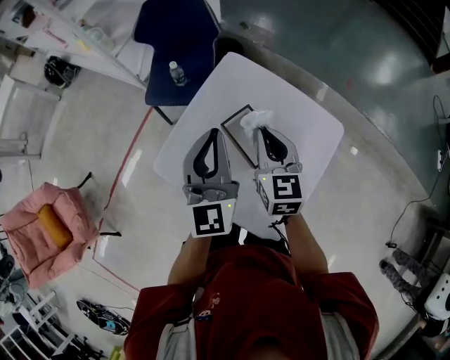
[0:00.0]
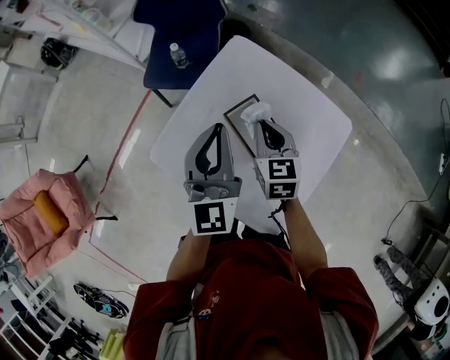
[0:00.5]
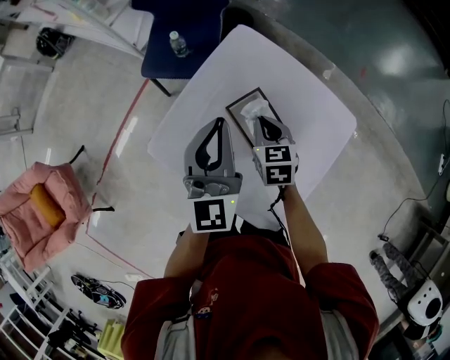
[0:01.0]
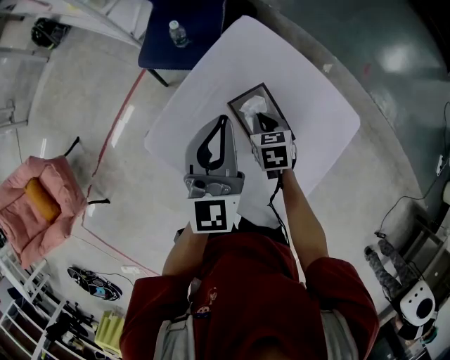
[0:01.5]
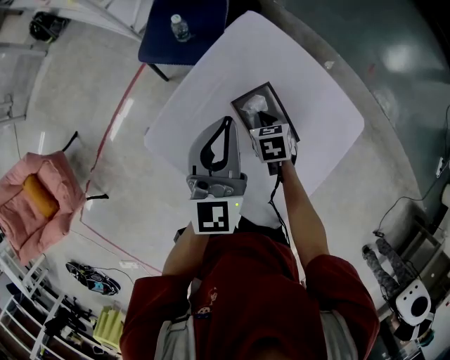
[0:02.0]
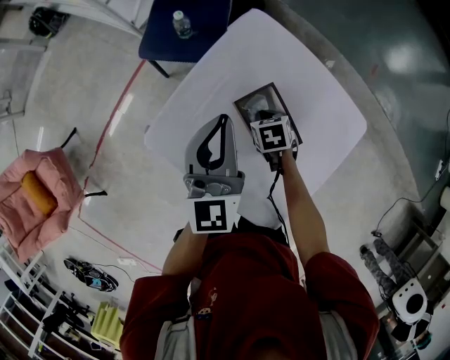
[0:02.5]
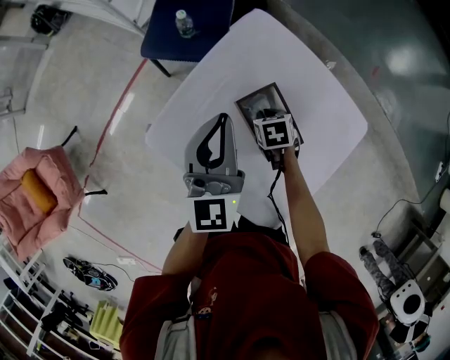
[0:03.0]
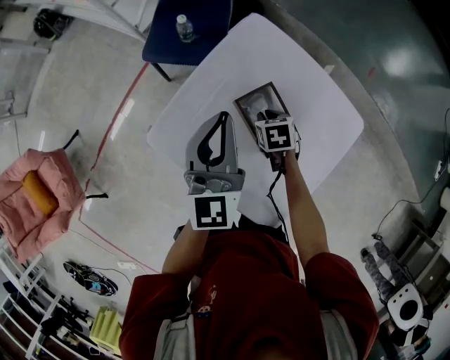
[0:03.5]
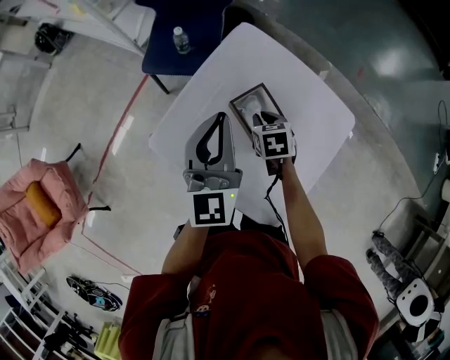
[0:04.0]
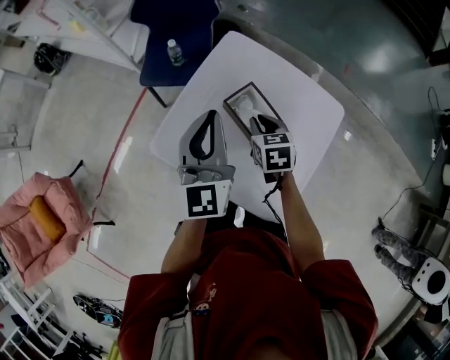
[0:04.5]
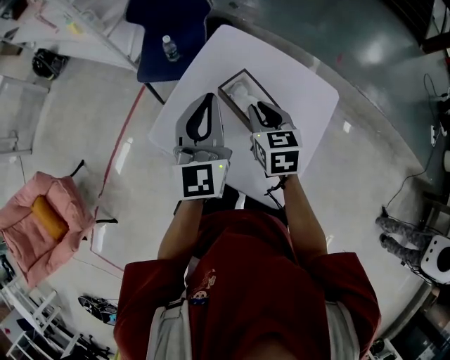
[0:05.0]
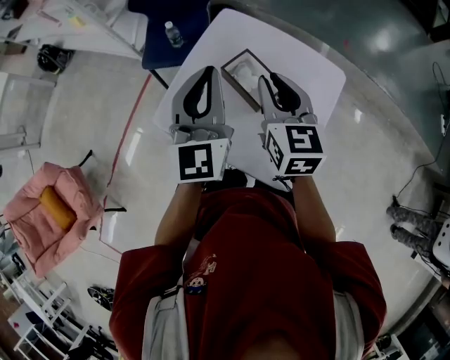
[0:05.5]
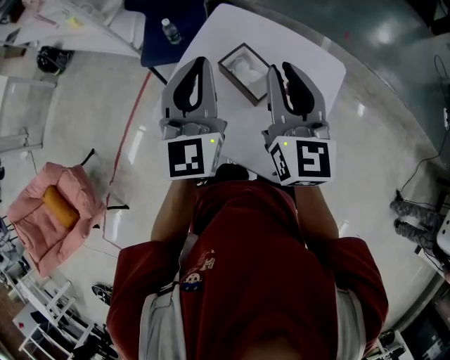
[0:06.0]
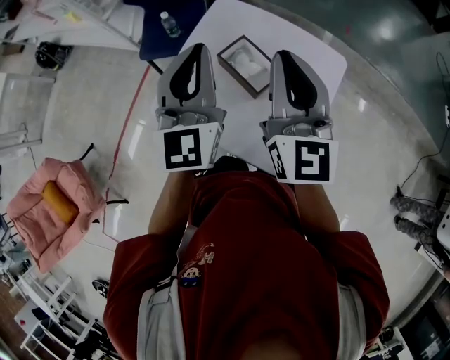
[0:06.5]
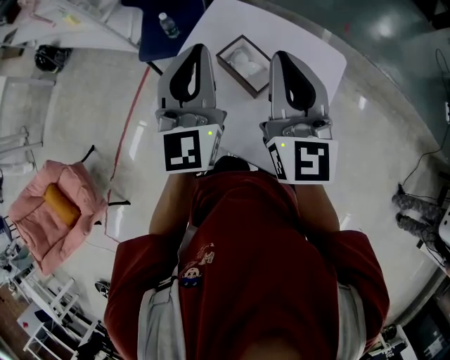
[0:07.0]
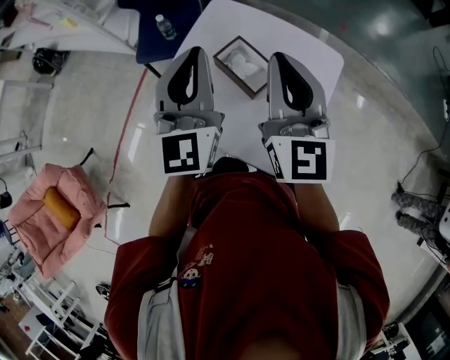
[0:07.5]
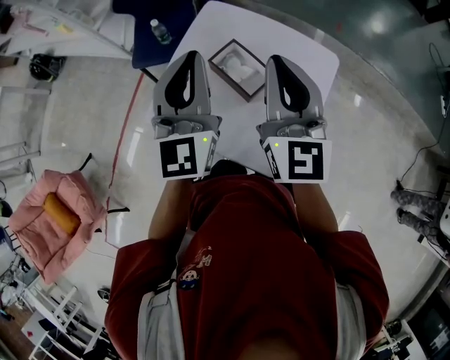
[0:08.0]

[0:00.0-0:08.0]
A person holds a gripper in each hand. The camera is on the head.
0:00.0 to 0:02.0: The left gripper heads downward, covering roughly 10 cm. Meanwhile the right gripper travels downward by about 25 cm, and points its fingers about 40 degrees further downward.
0:02.0 to 0:04.0: The grippers make only small movements.
0:04.0 to 0:06.0: The left gripper is displaced upward and backward by roughly 15 cm, while the right gripper is displaced upward and backward by approximately 35 cm, and points its fingers roughly 60 degrees further upward.
0:06.0 to 0:08.0: There are only small adjustments of the grippers.

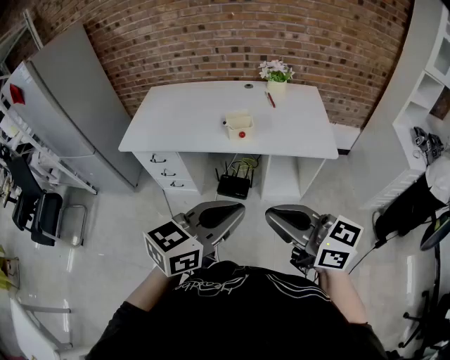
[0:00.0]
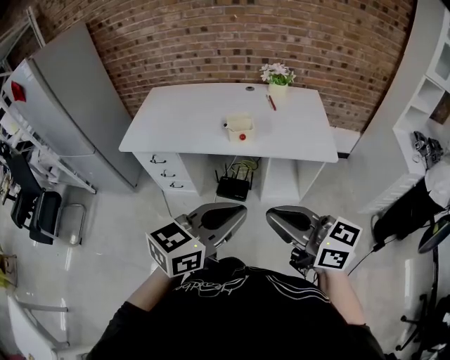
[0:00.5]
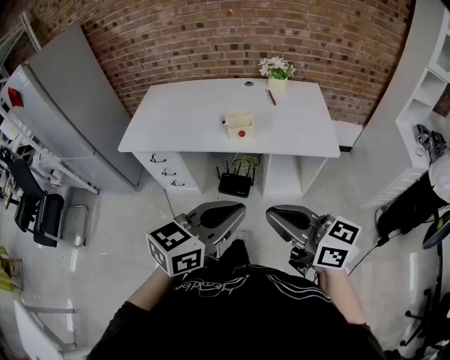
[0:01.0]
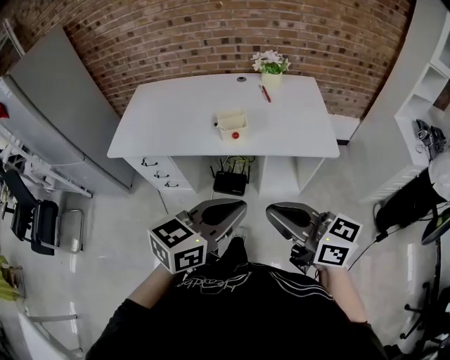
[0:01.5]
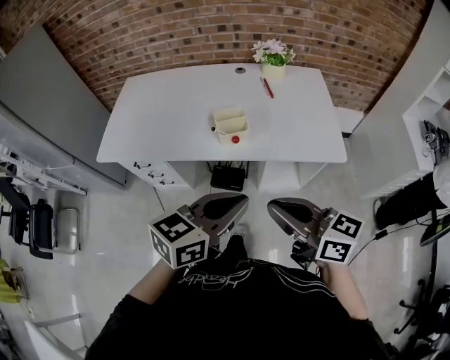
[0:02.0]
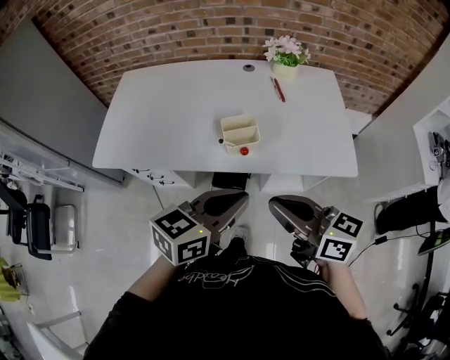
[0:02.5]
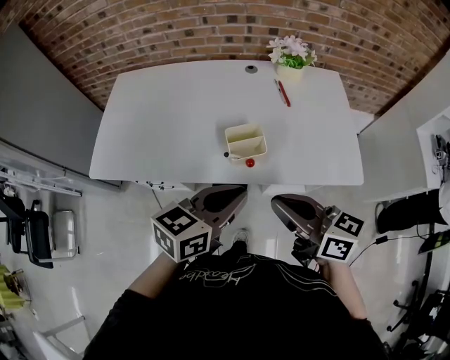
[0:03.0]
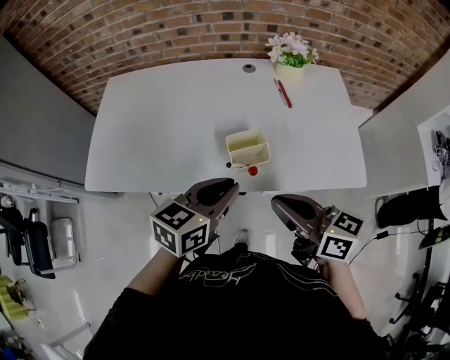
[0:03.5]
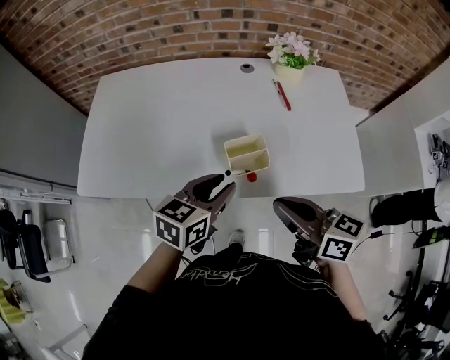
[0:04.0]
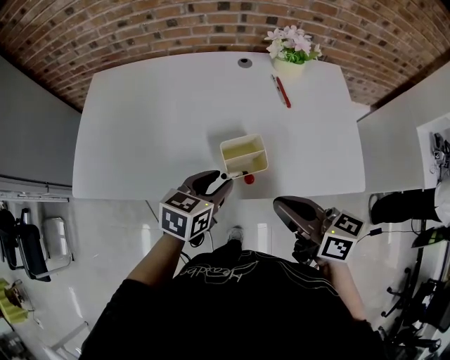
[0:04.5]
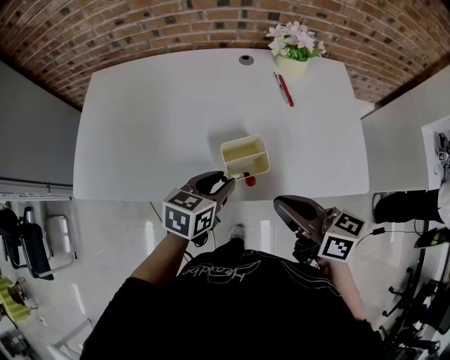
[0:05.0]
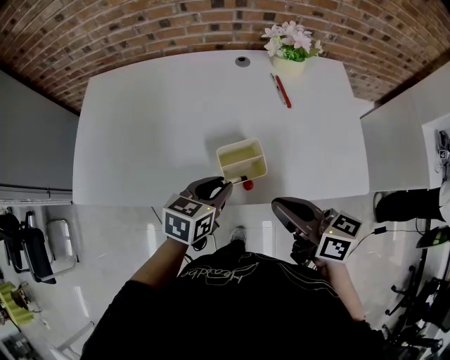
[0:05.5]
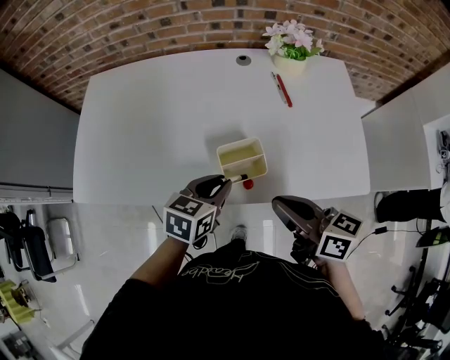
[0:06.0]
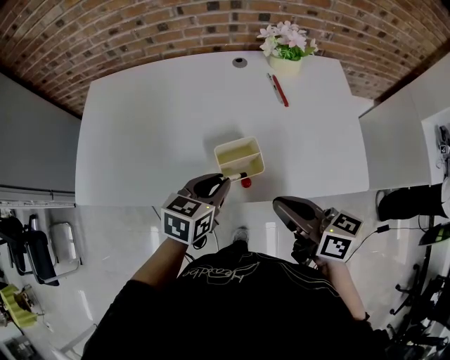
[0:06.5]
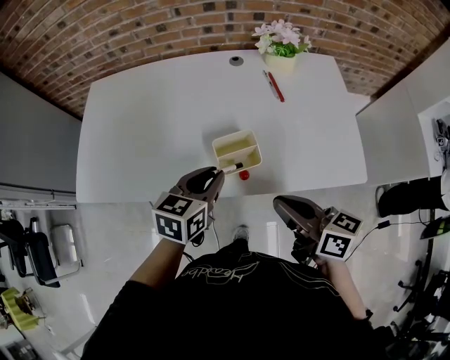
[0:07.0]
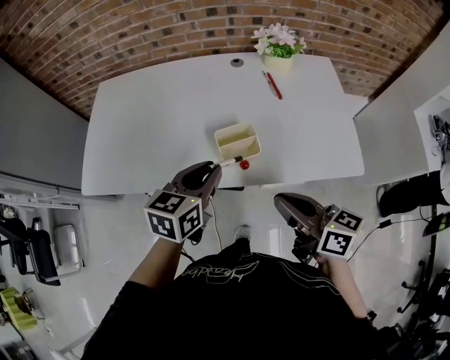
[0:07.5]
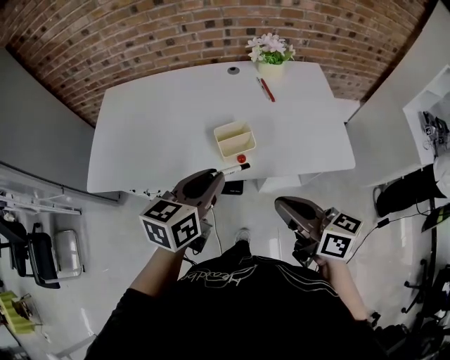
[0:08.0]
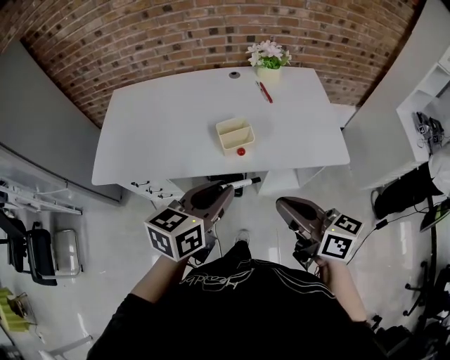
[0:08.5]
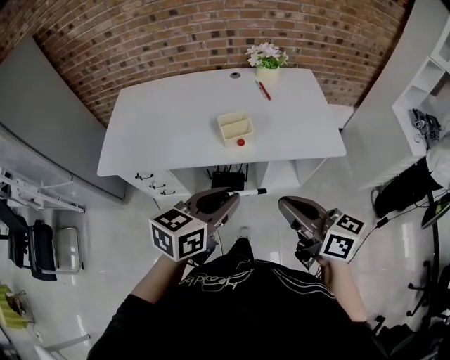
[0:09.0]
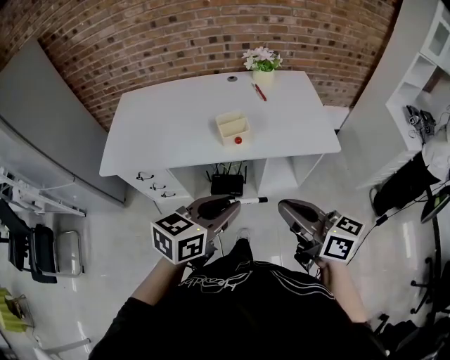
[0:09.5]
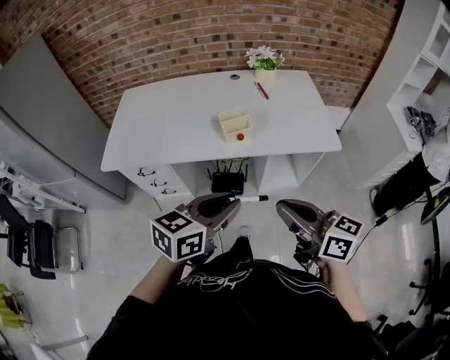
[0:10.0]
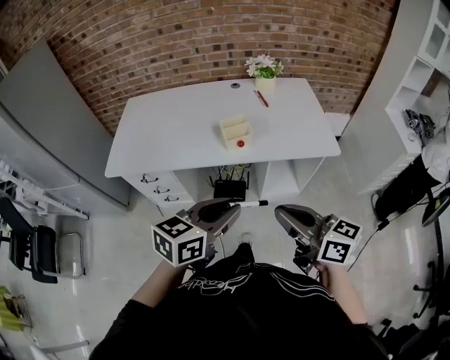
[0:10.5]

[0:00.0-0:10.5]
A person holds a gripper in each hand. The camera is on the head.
0:00.0 to 0:02.0: Both grippers move forward, some 15 cm.
0:02.0 to 0:04.0: The right gripper travels forward by about 20 cm; the left gripper is displaced forward, downward and to the left by approximately 30 cm, and opens.
0:04.0 to 0:06.5: The right gripper shifts by roughly 5 cm; the left gripper goes roughly 5 cm downward.
0:06.5 to 0:08.5: The two grippers go roughly 20 cm backward and upward.
0:08.5 to 0:10.5: The grippers both shift backward by approximately 15 cm.

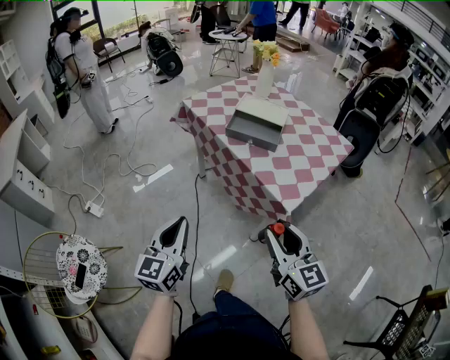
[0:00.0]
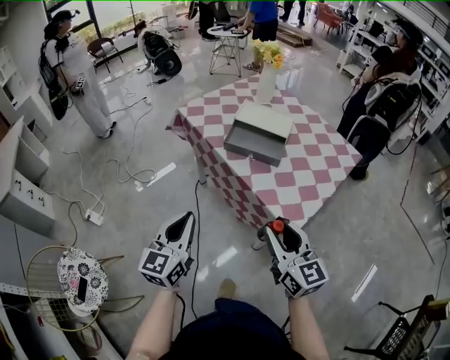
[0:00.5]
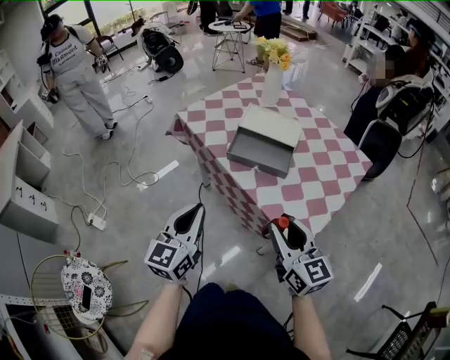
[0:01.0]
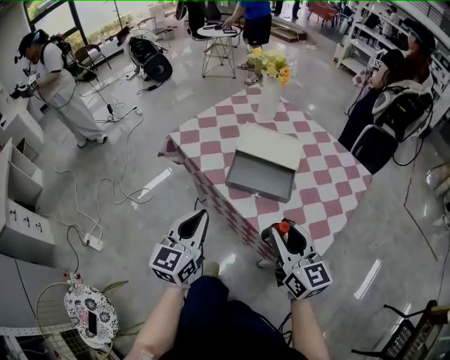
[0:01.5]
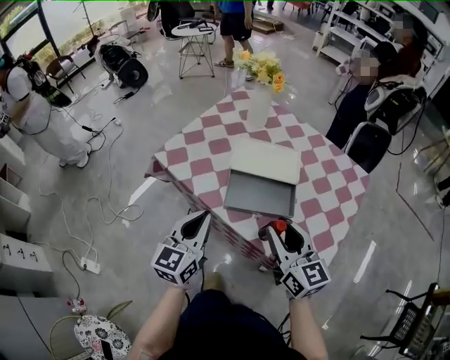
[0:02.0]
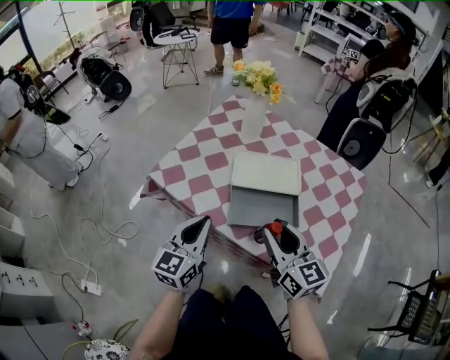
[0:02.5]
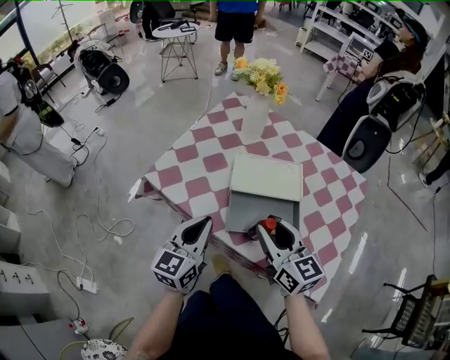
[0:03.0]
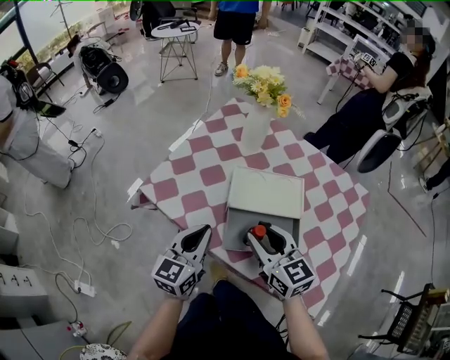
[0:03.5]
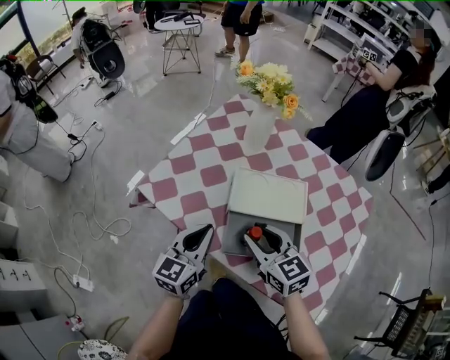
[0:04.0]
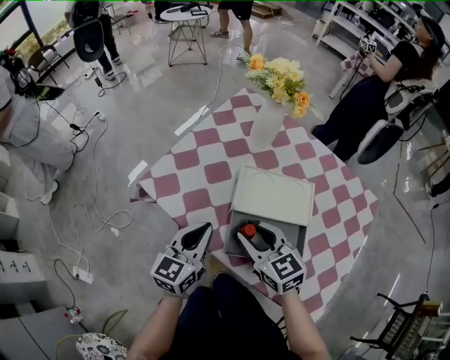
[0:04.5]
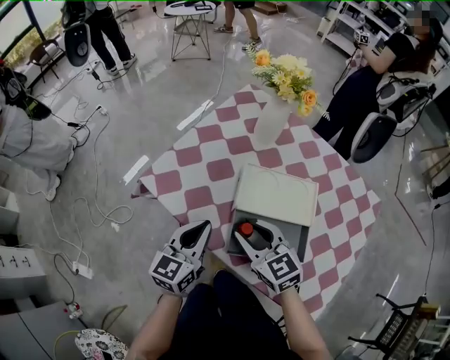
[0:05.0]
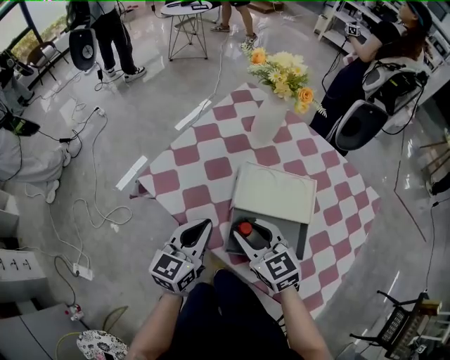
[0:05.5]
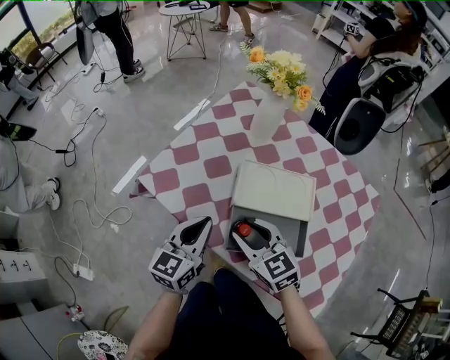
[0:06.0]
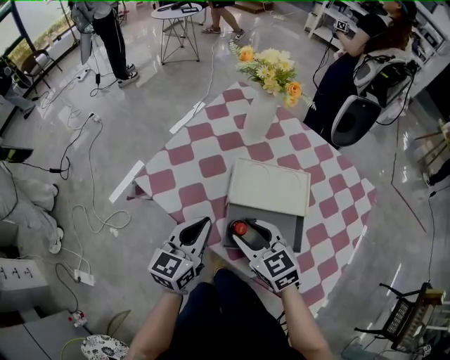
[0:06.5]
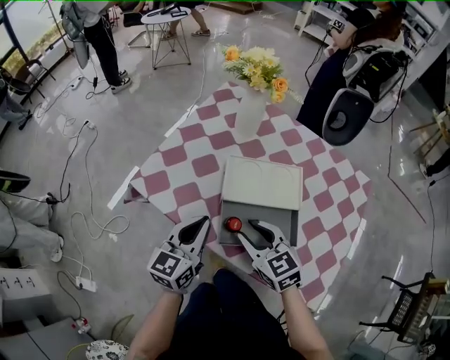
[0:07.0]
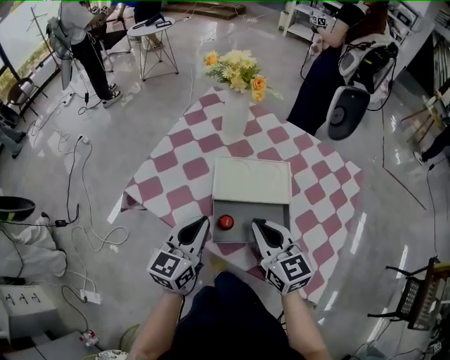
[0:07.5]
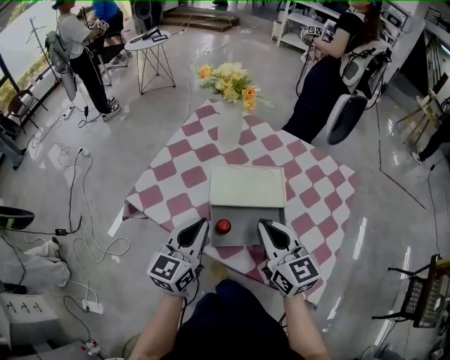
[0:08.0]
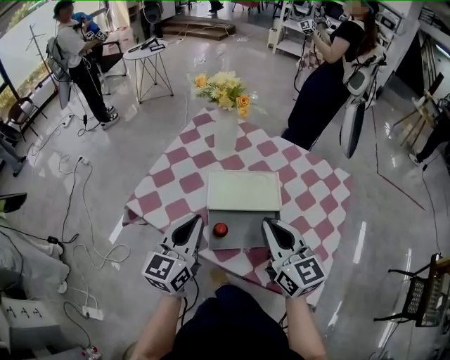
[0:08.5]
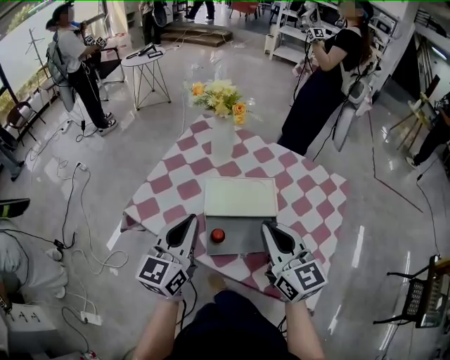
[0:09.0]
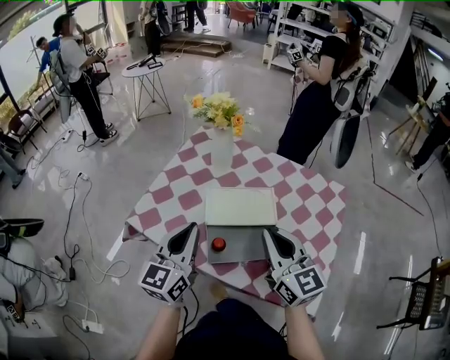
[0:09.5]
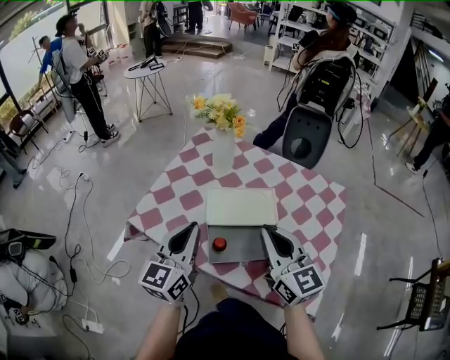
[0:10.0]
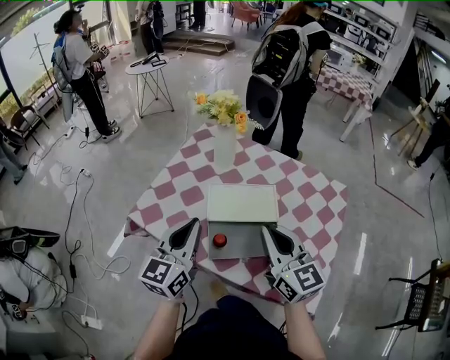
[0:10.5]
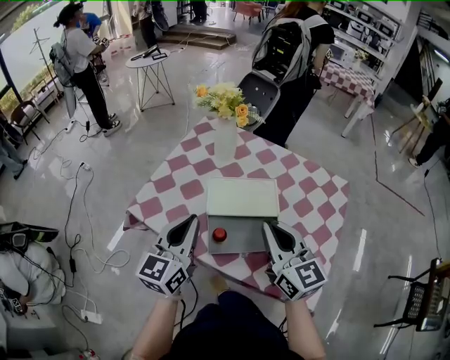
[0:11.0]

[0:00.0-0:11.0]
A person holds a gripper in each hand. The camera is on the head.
0:00.0 to 0:02.0: The two grippers travel together, forward, approximately 40 cm. The left gripper changes its angle by about 20 degrees.
0:02.0 to 0:03.5: The left gripper shifts approximately 10 cm forward; the right gripper heads forward and to the left, covering approximately 15 cm.
0:03.5 to 0:05.5: The right gripper shifts some 5 cm downward.
0:05.5 to 0:07.5: The right gripper shifts roughly 10 cm to the right and upward, rotates about 20 degrees, and closes its fingers. Meanwhile the left gripper changes place by roughly 5 cm.
0:07.5 to 0:09.0: The two grippers go about 10 cm upward.
0:09.0 to 0:11.0: The grippers move only a little.
